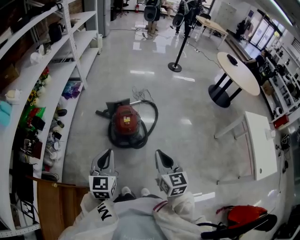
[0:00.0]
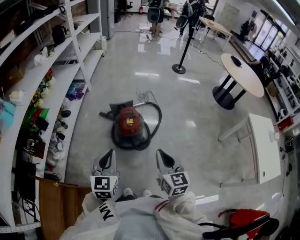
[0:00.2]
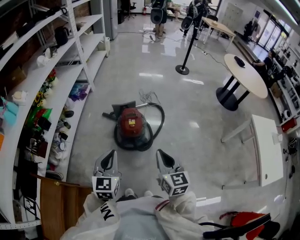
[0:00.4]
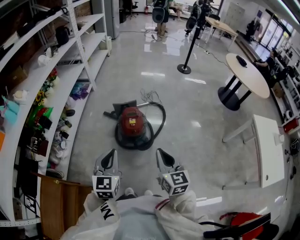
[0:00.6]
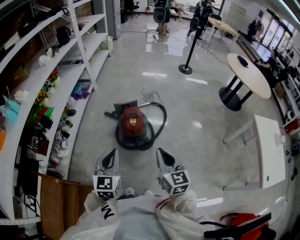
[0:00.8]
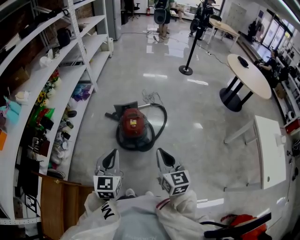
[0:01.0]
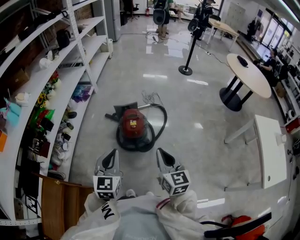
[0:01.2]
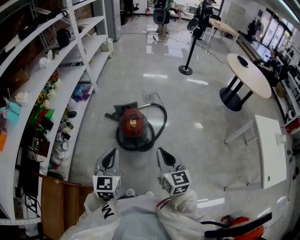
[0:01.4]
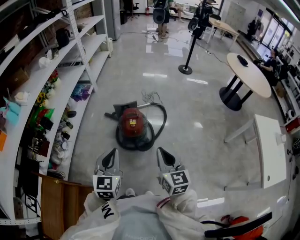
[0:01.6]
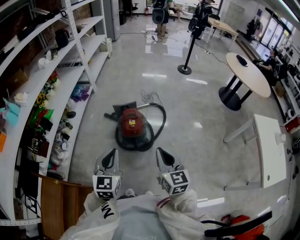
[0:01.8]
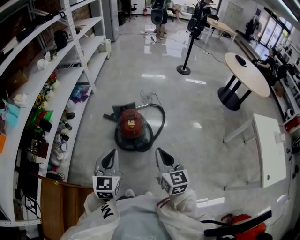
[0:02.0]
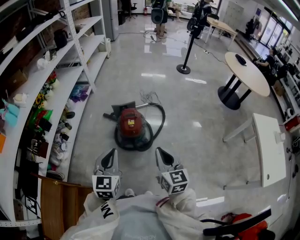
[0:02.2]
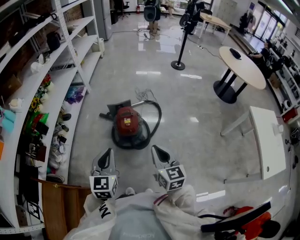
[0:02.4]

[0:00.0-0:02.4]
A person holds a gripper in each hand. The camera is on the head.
0.0 to 2.4 s: The grippers stay close to where they were, moving slightly.

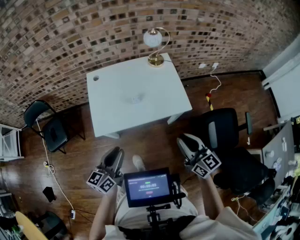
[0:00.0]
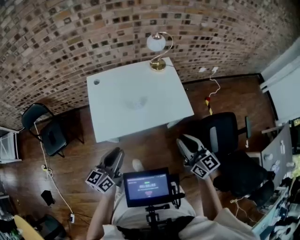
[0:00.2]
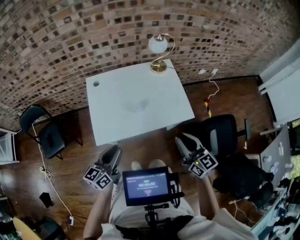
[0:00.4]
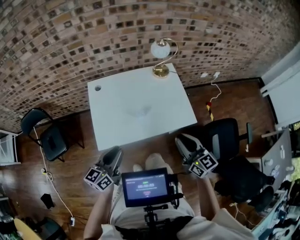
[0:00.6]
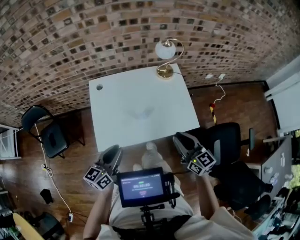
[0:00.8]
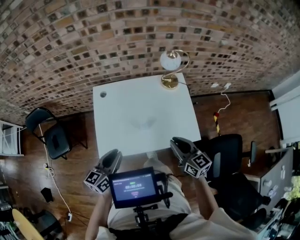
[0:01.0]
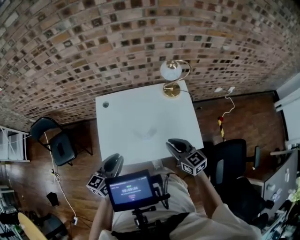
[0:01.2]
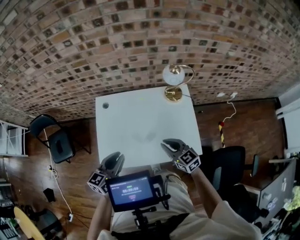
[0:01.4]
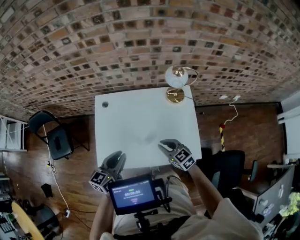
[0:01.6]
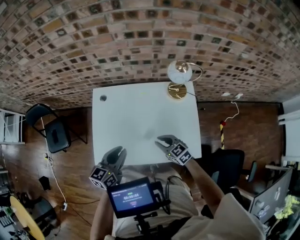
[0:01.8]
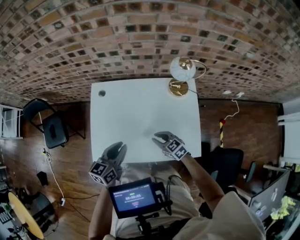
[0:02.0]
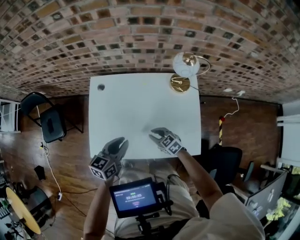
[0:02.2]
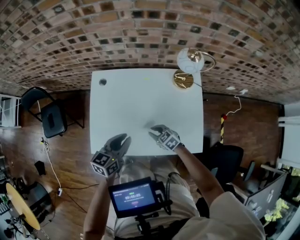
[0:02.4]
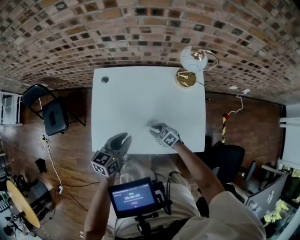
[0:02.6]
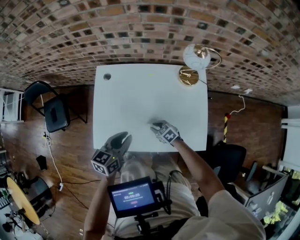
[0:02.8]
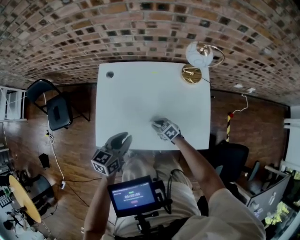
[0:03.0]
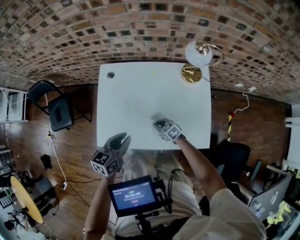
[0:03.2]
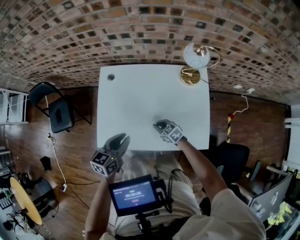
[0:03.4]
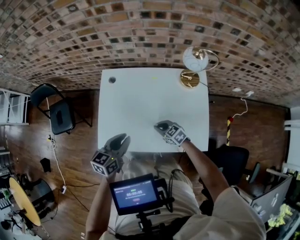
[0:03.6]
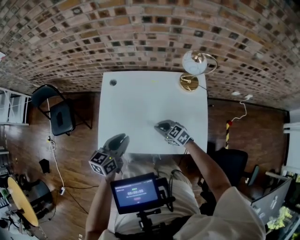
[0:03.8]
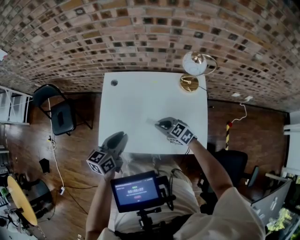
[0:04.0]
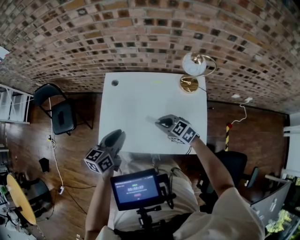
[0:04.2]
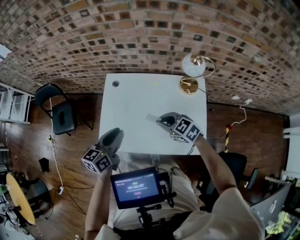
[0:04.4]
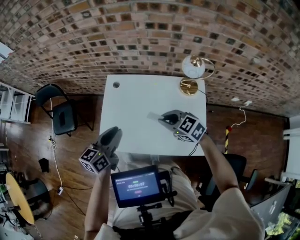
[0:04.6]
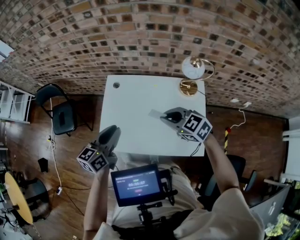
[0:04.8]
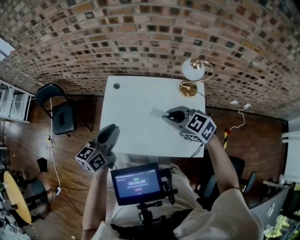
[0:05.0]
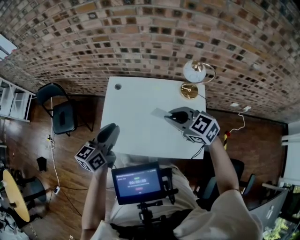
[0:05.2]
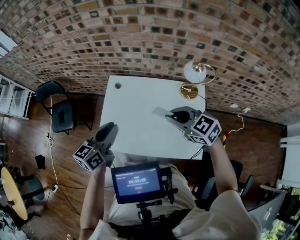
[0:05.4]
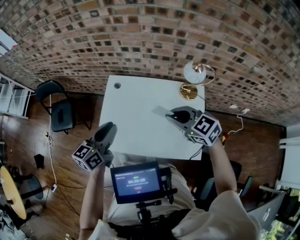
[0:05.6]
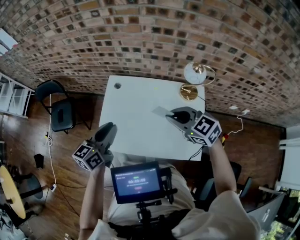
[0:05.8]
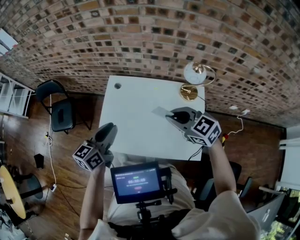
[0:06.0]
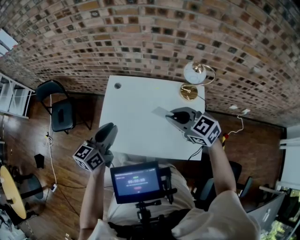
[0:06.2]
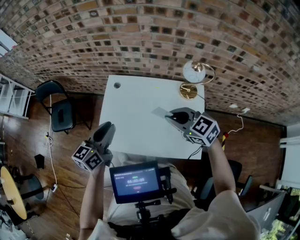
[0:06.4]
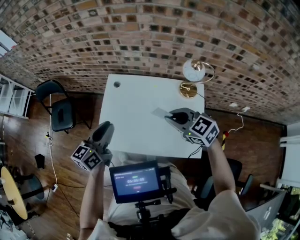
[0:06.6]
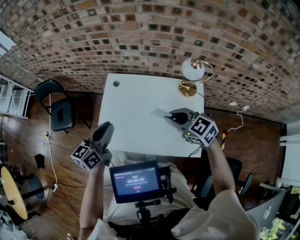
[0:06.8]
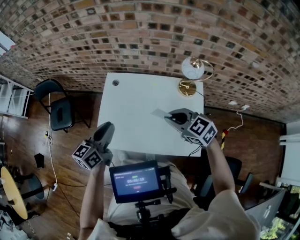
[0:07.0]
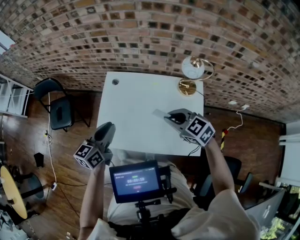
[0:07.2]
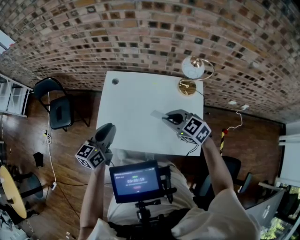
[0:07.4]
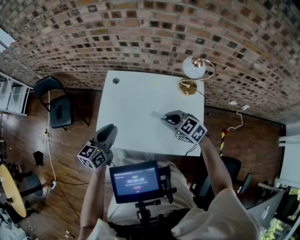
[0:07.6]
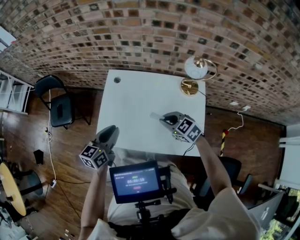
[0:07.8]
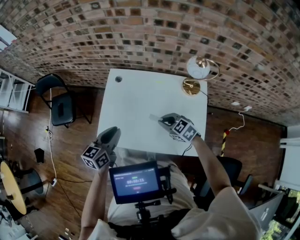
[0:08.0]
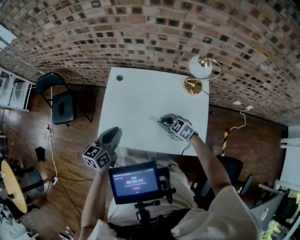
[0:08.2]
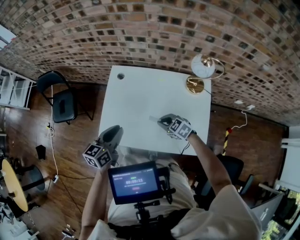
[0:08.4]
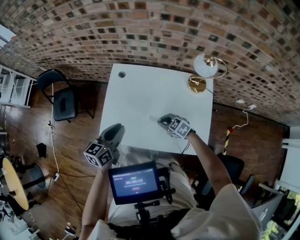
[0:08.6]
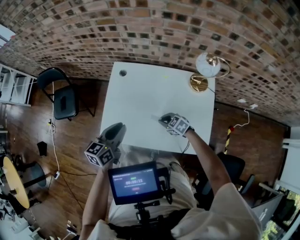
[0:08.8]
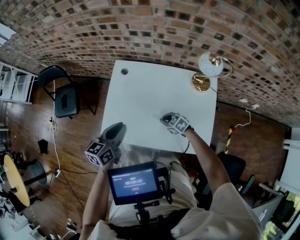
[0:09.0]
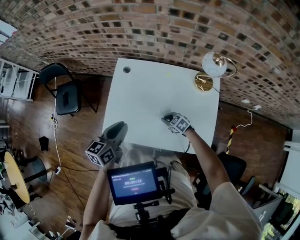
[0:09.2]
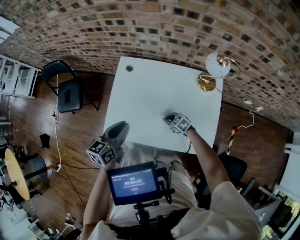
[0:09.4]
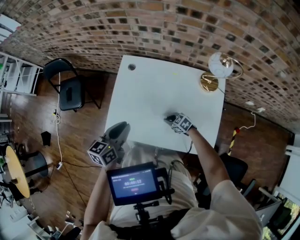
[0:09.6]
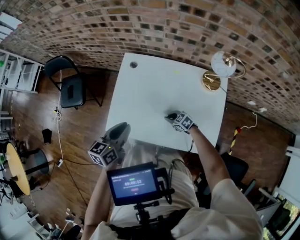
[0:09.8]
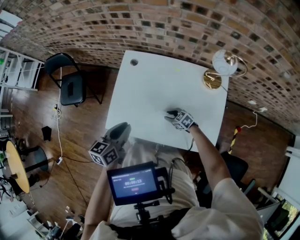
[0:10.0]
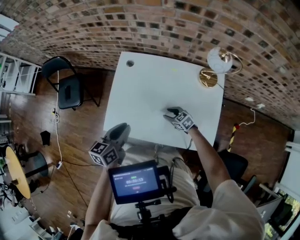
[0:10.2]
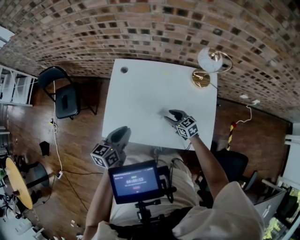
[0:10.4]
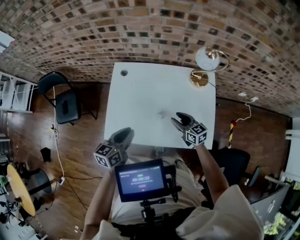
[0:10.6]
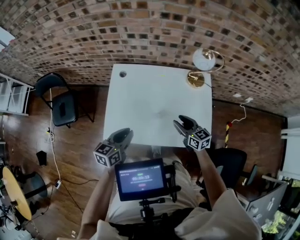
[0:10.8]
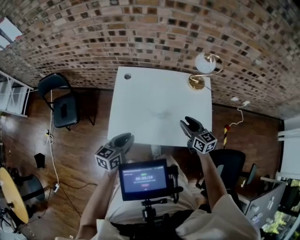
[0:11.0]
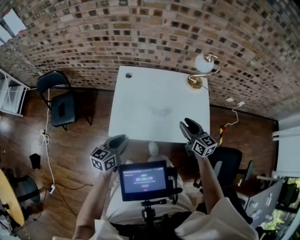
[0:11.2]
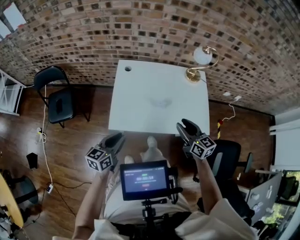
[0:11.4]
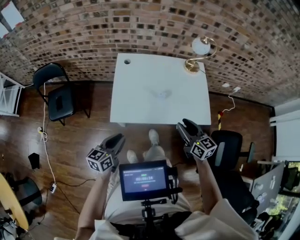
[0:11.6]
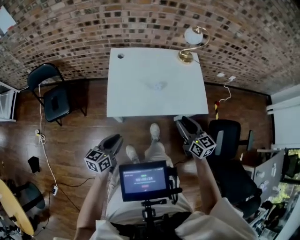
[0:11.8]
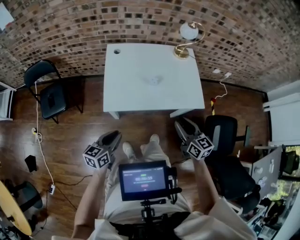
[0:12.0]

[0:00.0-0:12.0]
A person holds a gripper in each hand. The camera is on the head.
0.0 to 1.6 s: The right gripper heads forward and downward, covering about 35 cm, and rotates about 40 degrees. The left gripper moves forward, about 25 cm.
1.6 to 3.0 s: The left gripper goes about 10 cm downward; the right gripper goes approximately 25 cm downward, and turns by roughly 30 degrees.
3.0 to 4.4 s: The right gripper goes some 30 cm upward, and swivels approximately 20 degrees; the left gripper is displaced upward by approximately 10 cm.
4.4 to 6.0 s: The left gripper goes some 5 cm upward, while the right gripper goes about 15 cm upward.
6.0 to 7.6 s: The right gripper travels downward by some 10 cm, while the left gripper goes roughly 5 cm downward.
7.6 to 9.0 s: The right gripper shifts approximately 25 cm downward.
9.0 to 10.4 s: The right gripper shifts by about 5 cm, swivels about 30 degrees, and opens up.
10.4 to 12.0 s: The left gripper shifts by approximately 30 cm, while the right gripper changes place by some 40 cm, and swivels about 40 degrees.

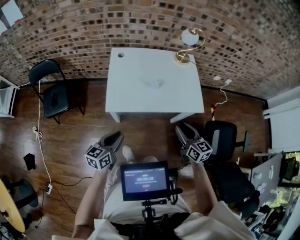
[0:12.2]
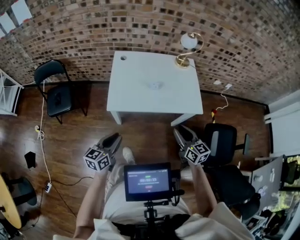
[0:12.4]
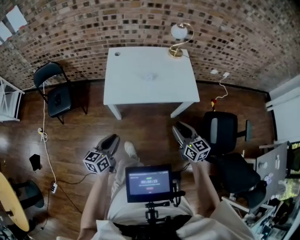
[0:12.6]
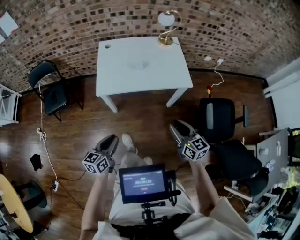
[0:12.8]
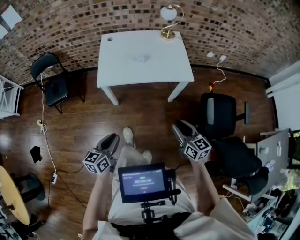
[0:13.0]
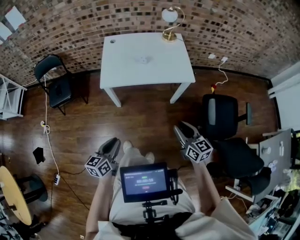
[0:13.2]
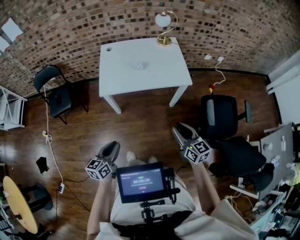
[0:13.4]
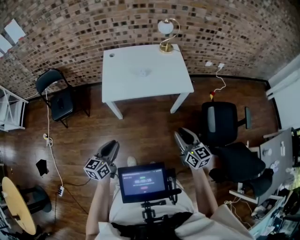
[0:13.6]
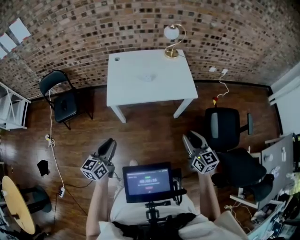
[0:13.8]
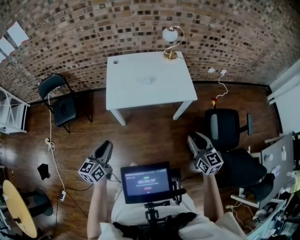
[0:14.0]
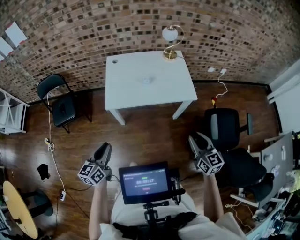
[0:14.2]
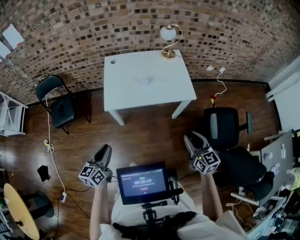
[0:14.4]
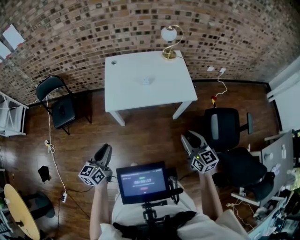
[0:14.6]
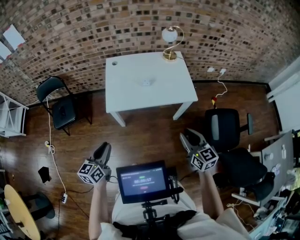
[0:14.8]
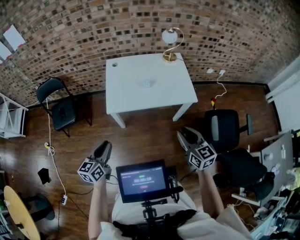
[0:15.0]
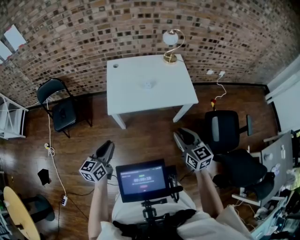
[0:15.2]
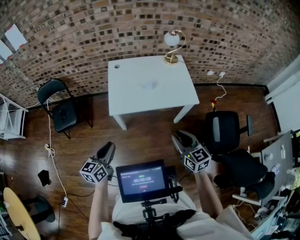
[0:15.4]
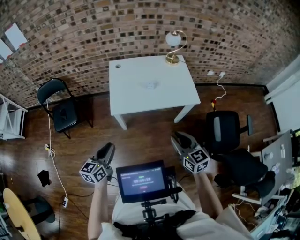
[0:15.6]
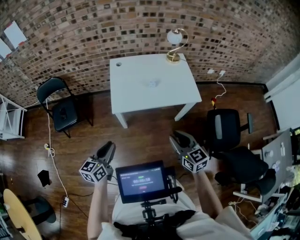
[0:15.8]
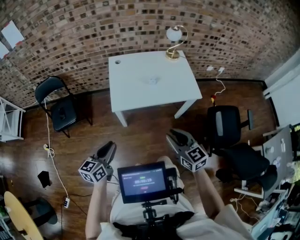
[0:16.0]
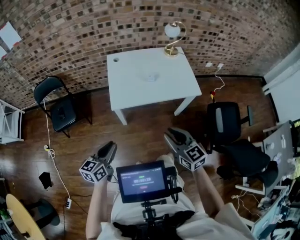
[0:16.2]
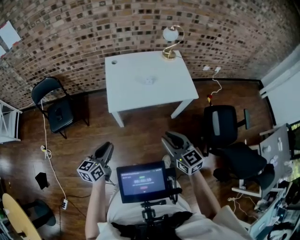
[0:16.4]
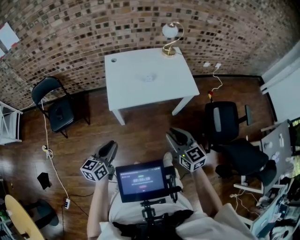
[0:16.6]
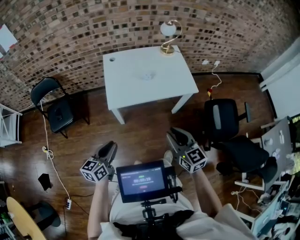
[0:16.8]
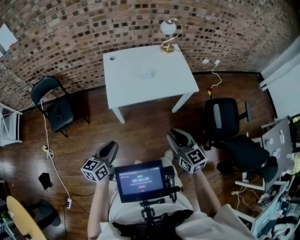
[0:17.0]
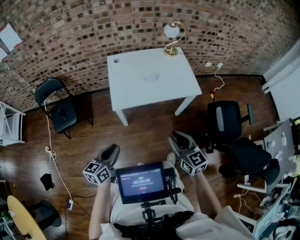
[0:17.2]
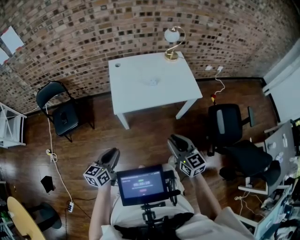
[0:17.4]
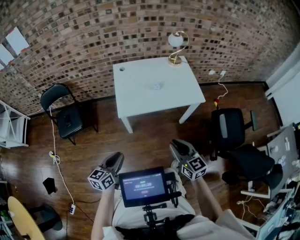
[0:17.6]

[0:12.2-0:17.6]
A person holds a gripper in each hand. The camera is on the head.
12.2 to 13.6 s: The grippers both shift backward by roughly 20 cm.
13.6 to 15.0 s: The left gripper shifts roughly 10 cm to the left and forward, while the right gripper goes approximately 10 cm forward and upward.
15.0 to 16.2 s: The left gripper changes place by about 5 cm. Meanwhile the right gripper goes approximately 15 cm to the left.
16.2 to 17.6 s: There are only small adjustments of the grippers.

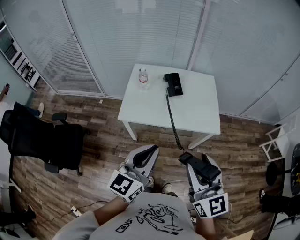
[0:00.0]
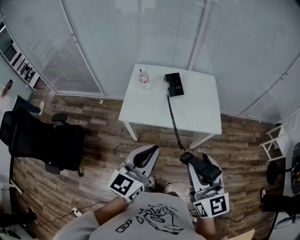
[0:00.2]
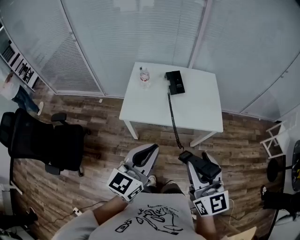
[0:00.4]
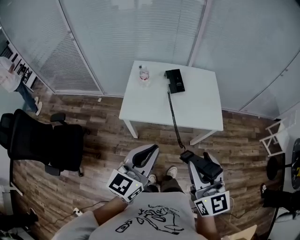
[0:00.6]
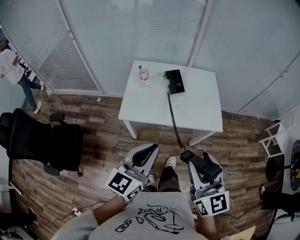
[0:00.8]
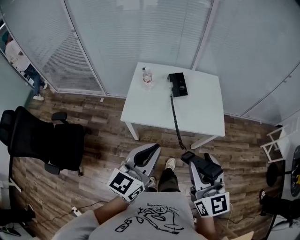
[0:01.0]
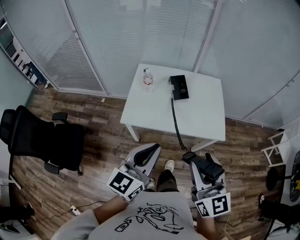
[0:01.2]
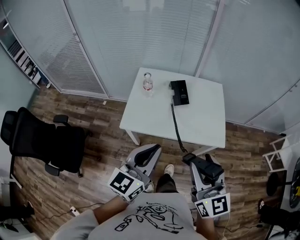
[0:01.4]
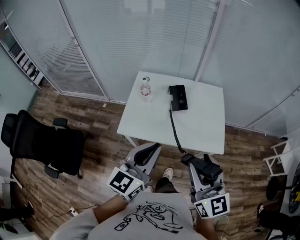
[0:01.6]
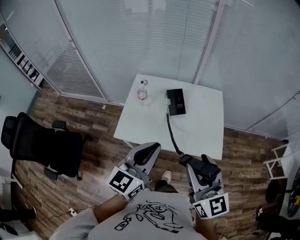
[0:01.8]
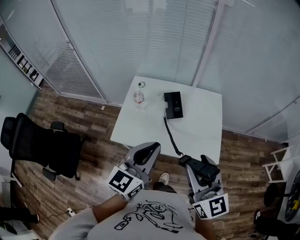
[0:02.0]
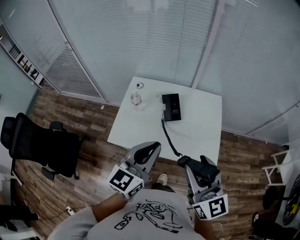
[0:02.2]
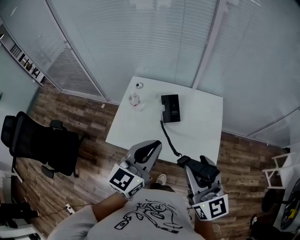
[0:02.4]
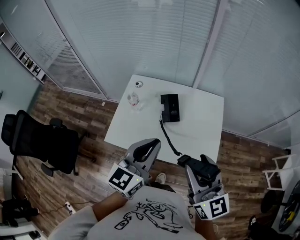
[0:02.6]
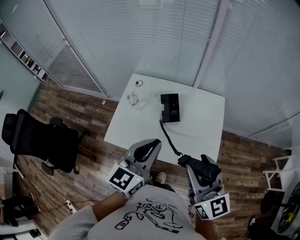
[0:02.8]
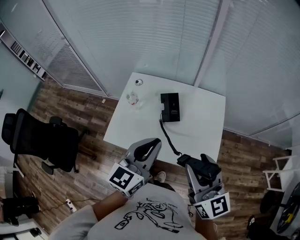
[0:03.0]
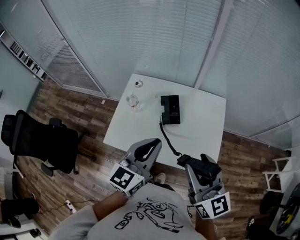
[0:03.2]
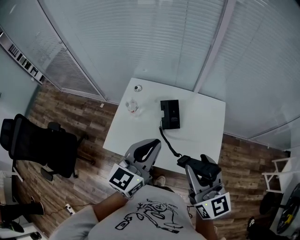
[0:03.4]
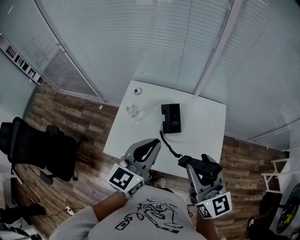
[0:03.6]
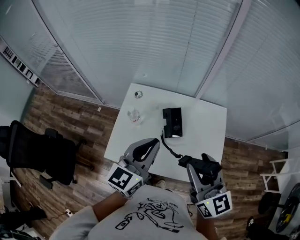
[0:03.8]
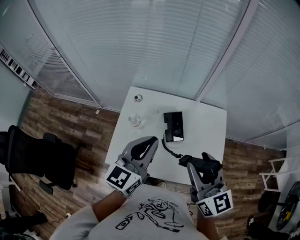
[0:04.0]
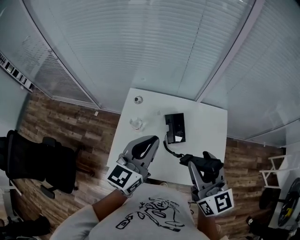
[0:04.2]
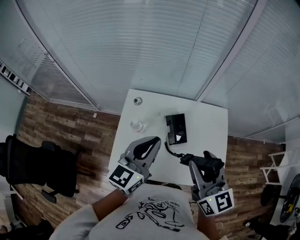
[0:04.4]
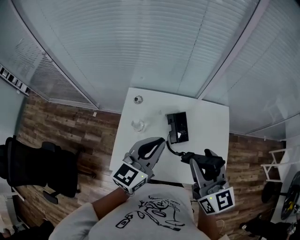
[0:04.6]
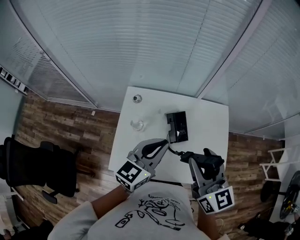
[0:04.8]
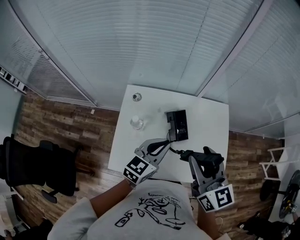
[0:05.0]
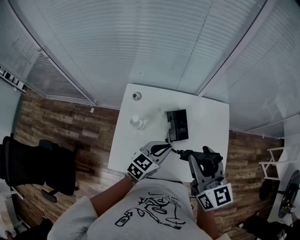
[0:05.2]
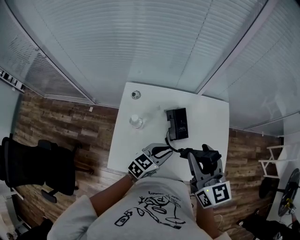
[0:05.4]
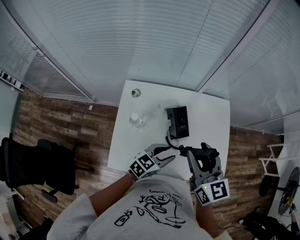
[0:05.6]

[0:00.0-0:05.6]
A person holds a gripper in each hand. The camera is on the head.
0.0 to 1.4 s: Both grippers move forward, approximately 10 cm.
1.4 to 2.8 s: Both grippers move forward and to the right, some 20 cm.
2.8 to 4.2 s: Both grippers travel together forward and to the left, roughly 20 cm.
4.2 to 5.6 s: The left gripper heads downward, covering some 25 cm, changes its angle by approximately 40 degrees, and opens its fingers. The right gripper goes some 10 cm downward.
